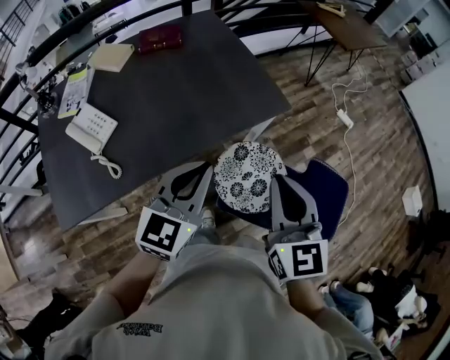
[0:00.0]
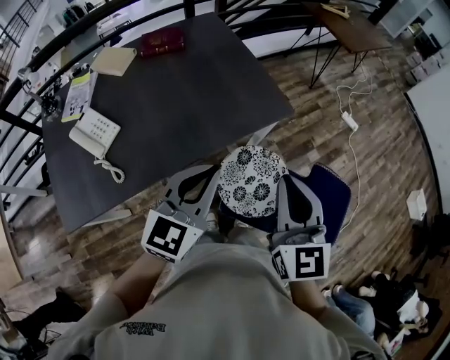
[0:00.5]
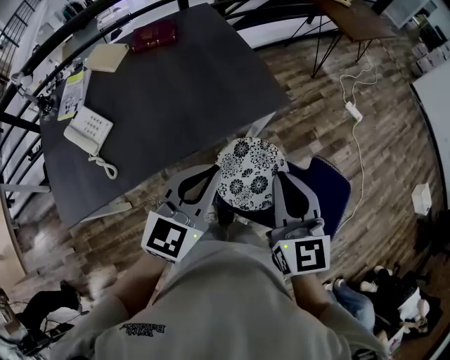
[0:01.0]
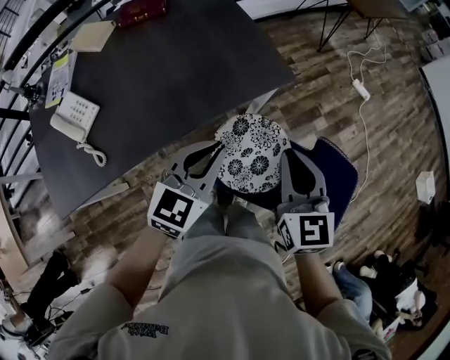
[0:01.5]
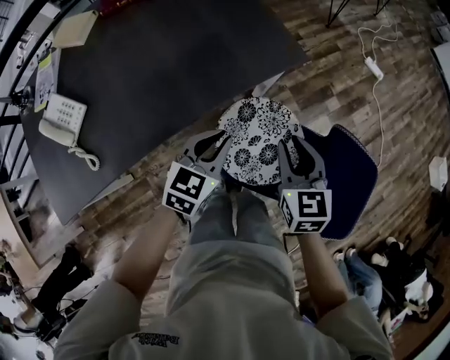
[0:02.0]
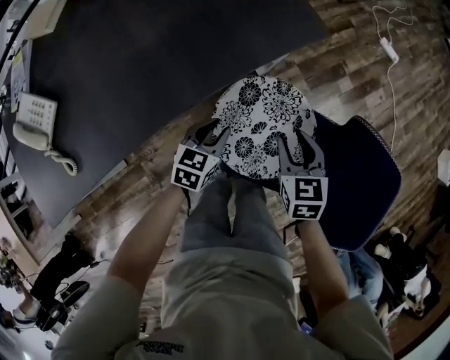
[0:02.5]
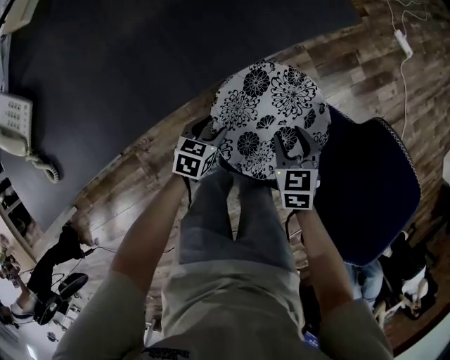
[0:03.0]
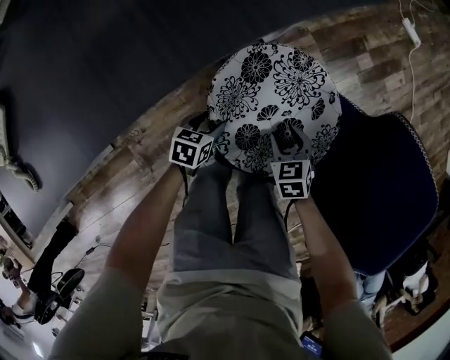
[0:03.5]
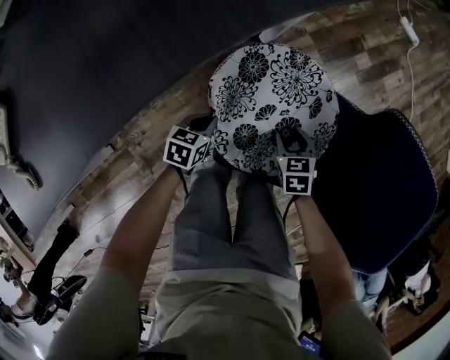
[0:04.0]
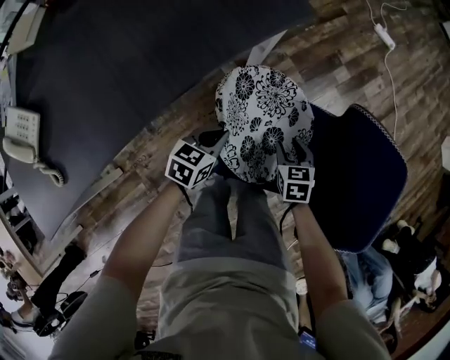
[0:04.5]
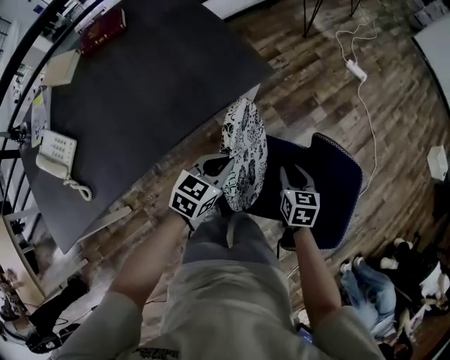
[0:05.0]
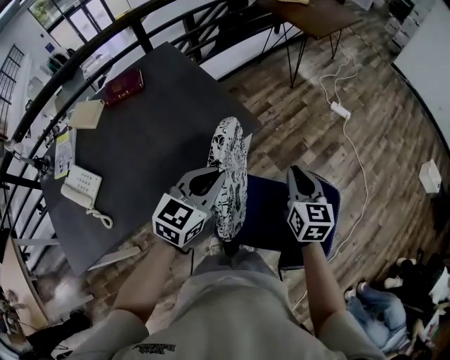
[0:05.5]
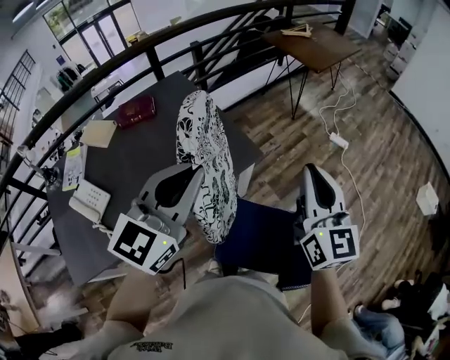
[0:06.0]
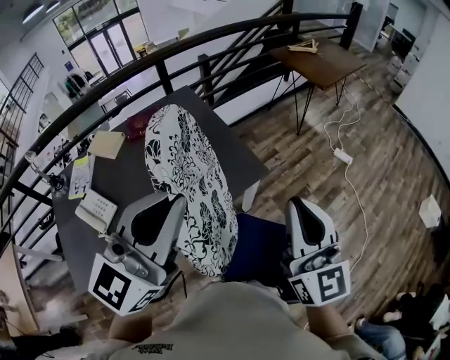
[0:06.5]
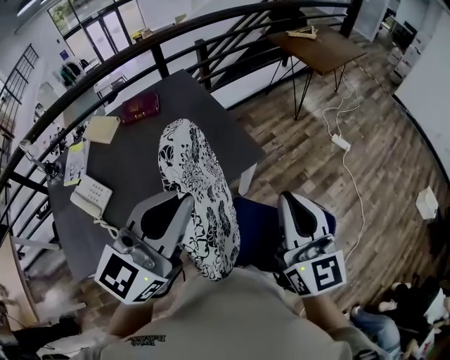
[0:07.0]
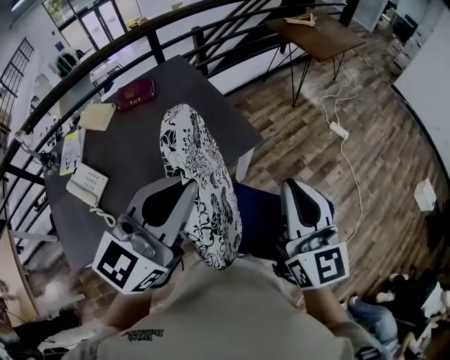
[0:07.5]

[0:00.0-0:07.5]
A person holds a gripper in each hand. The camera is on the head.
0:00.0 to 0:02.0: The two grippers go approximately 25 cm downward and forward. The right gripper turns by approximately 20 degrees. Meanwhile the left gripper swivels about 20 degrees.
0:02.0 to 0:04.0: Both grippers travel together downward, about 40 cm. The left gripper turns by some 30 degrees, and opens, then closes again; the right gripper tilts its fingers about 30 degrees downward, and opens up.
0:04.0 to 0:05.5: Both grippers travel together upward, approximately 60 cm. The right gripper tips its fingers upward by roughly 40 degrees, and closes up, while the left gripper points its fingers approximately 30 degrees further upward.
0:05.5 to 0:07.5: Both grippers travel together upward, about 25 cm. The left gripper swivels approximately 20 degrees; the right gripper swivels approximately 30 degrees.

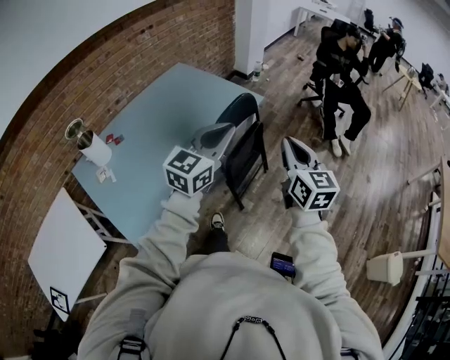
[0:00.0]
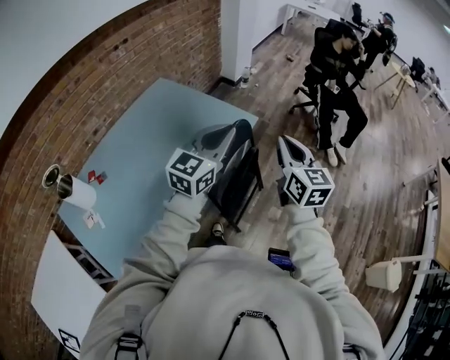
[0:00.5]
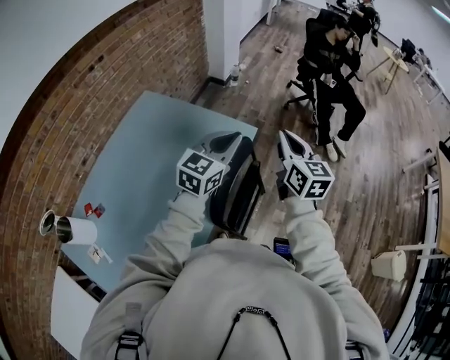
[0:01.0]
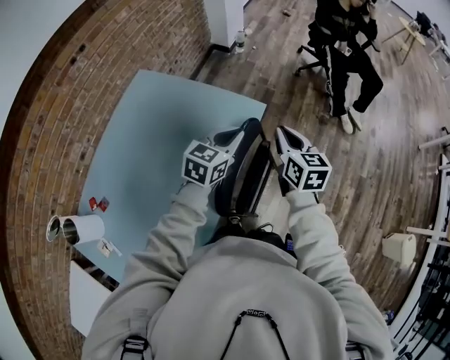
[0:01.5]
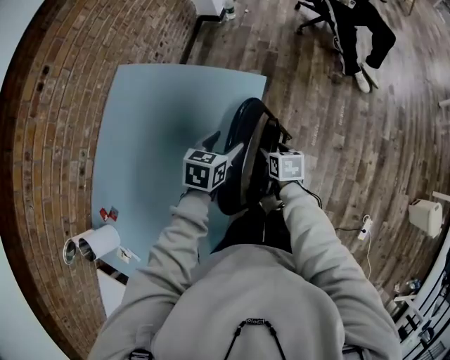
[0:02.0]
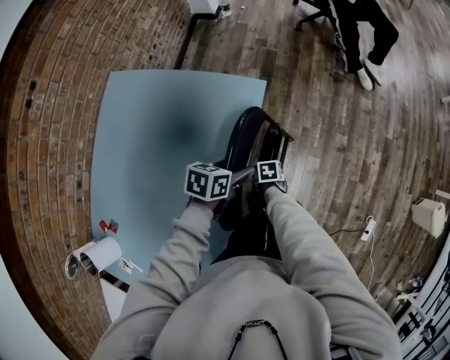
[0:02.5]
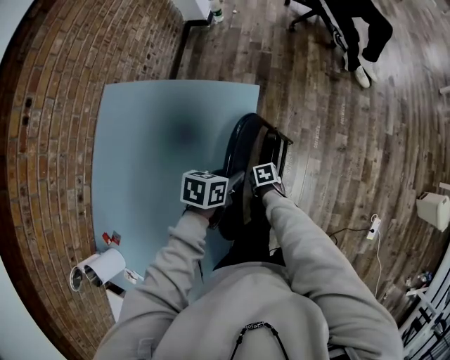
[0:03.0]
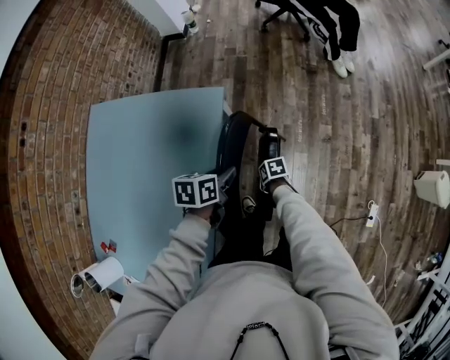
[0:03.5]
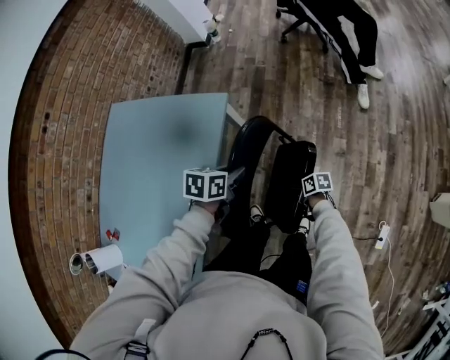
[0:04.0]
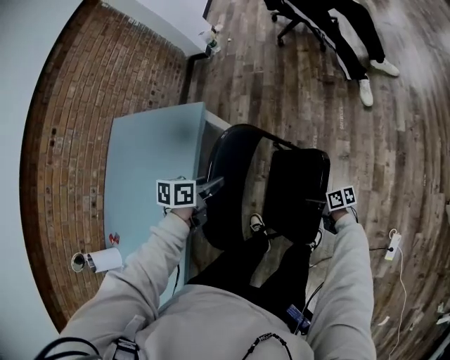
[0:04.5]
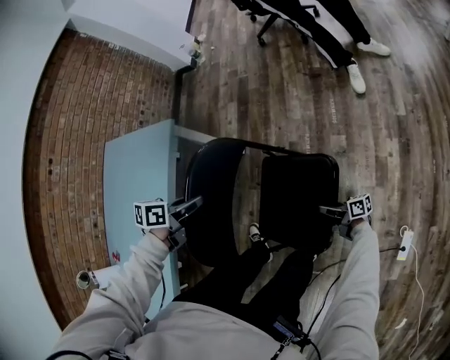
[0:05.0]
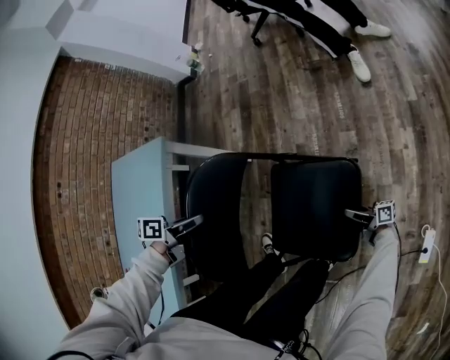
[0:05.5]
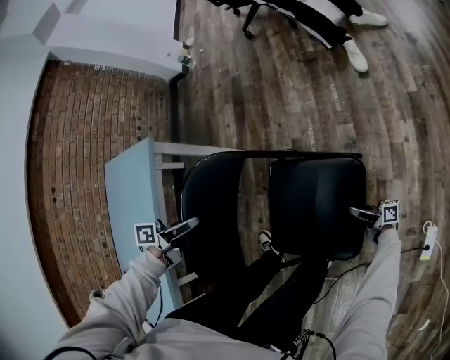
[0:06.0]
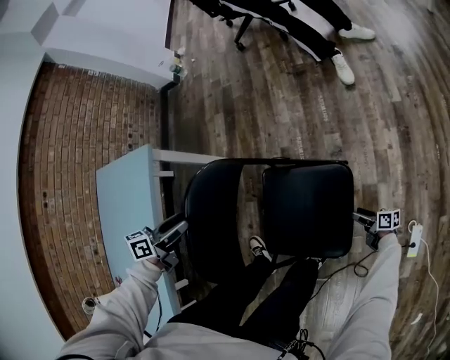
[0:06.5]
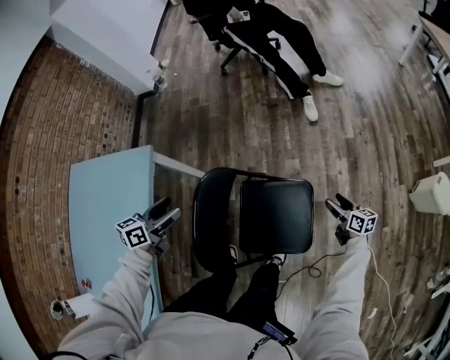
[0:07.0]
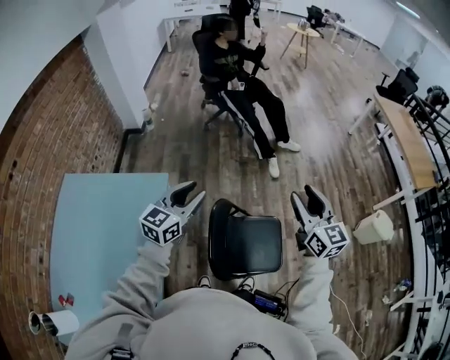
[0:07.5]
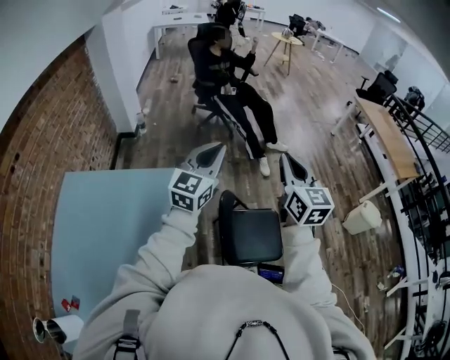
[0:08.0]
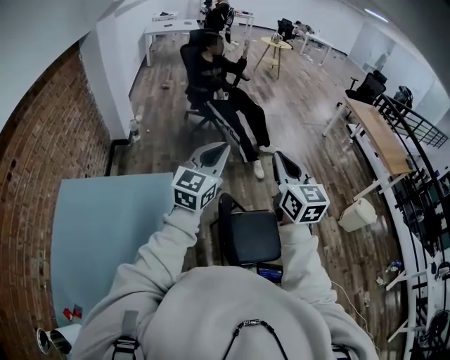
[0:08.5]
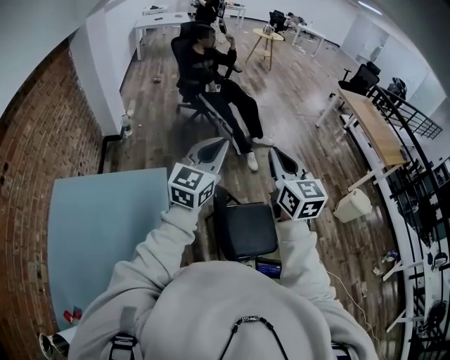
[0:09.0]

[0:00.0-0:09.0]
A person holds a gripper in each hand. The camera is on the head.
0:00.0 to 0:02.0: The pair of grippers is taken forward, roughly 40 cm. Both grippers travel together downward, roughly 40 cm. The right gripper tips its fingers downward by about 50 degrees, and opens up; the left gripper angles its fingers downward, by approximately 50 degrees, and opens its fingers.
0:02.0 to 0:04.5: The right gripper shifts by some 40 cm, turns by approximately 40 degrees, and closes; the left gripper ends up about 25 cm from where it was, and closes.
0:04.5 to 0:07.0: The right gripper goes downward and returns, some 25 cm each way, rotates roughly 40 degrees, and opens up; the left gripper goes downward and returns, roughly 15 cm each way, swivels about 30 degrees, and opens its fingers.
0:07.0 to 0:09.0: The left gripper shifts about 40 cm upward, tilts its fingers approximately 30 degrees upward, and closes up; the right gripper travels upward and to the left by about 80 cm, changes its angle by about 50 degrees, and closes up.

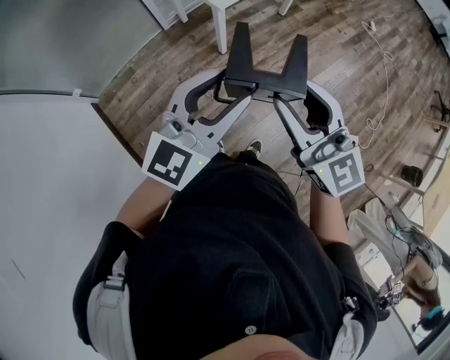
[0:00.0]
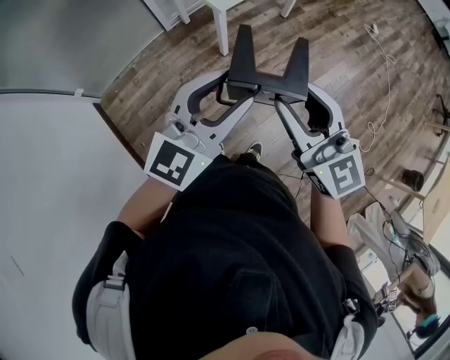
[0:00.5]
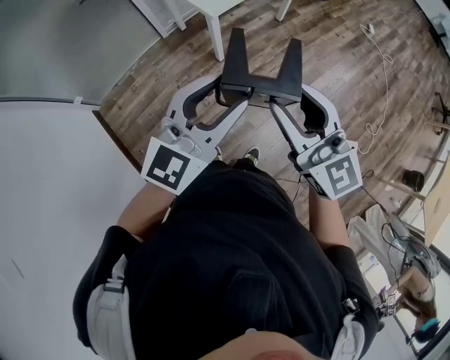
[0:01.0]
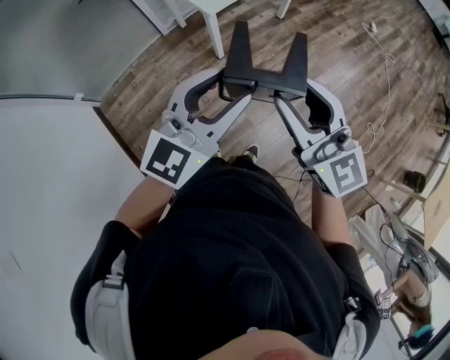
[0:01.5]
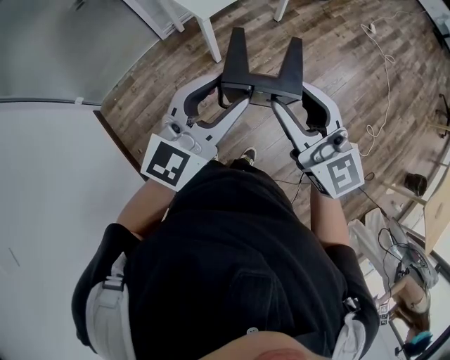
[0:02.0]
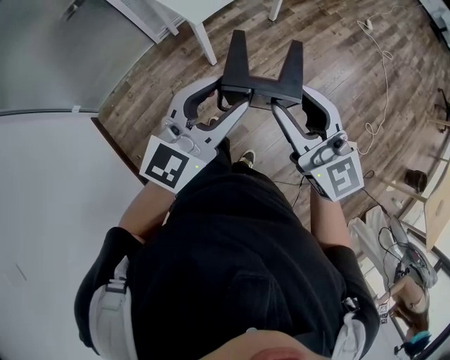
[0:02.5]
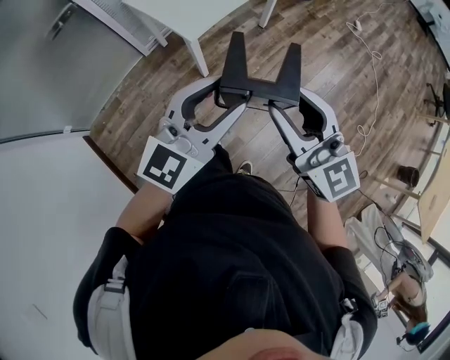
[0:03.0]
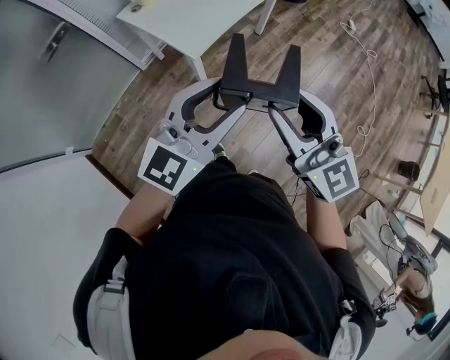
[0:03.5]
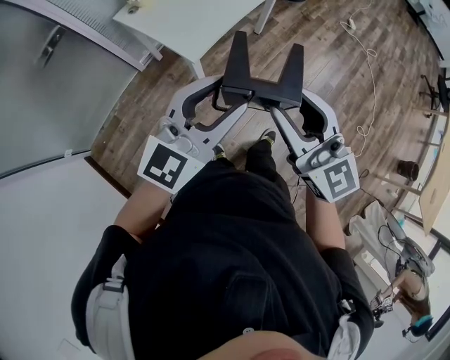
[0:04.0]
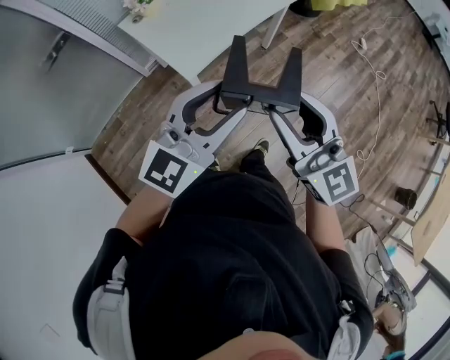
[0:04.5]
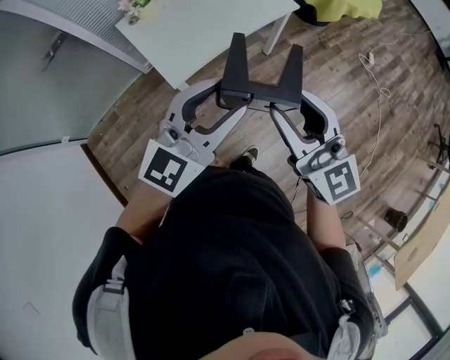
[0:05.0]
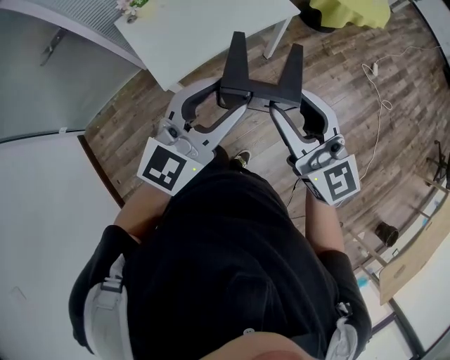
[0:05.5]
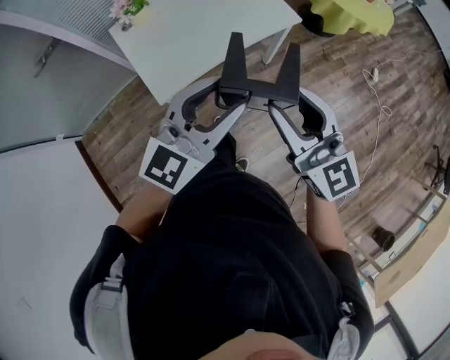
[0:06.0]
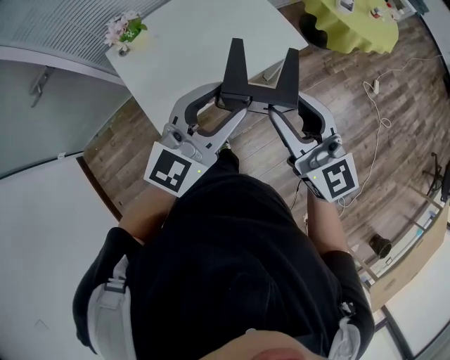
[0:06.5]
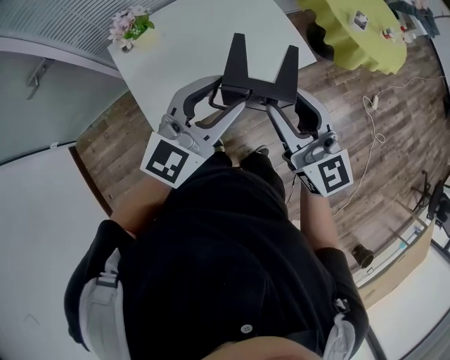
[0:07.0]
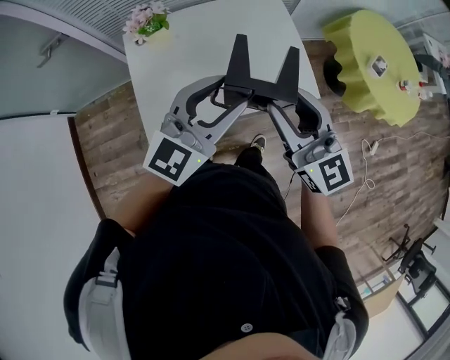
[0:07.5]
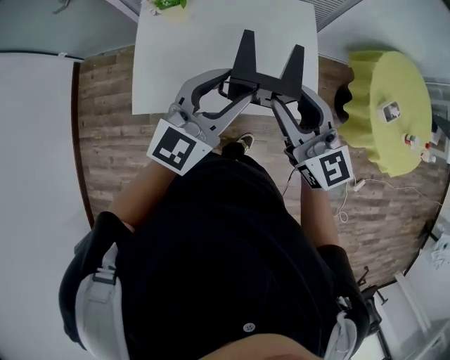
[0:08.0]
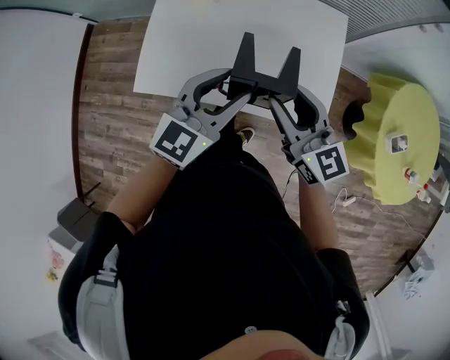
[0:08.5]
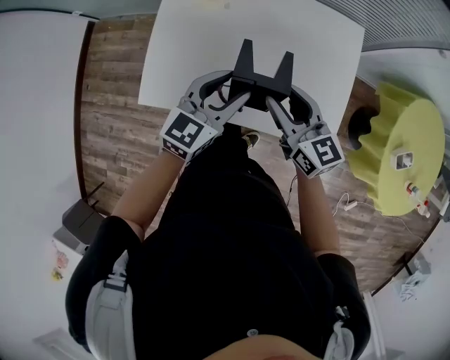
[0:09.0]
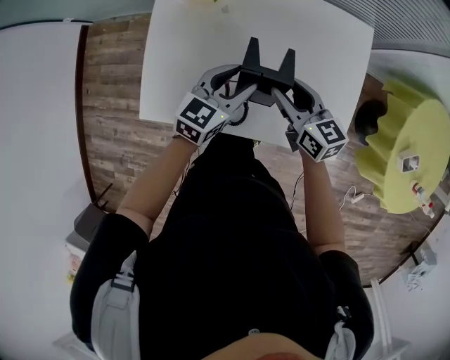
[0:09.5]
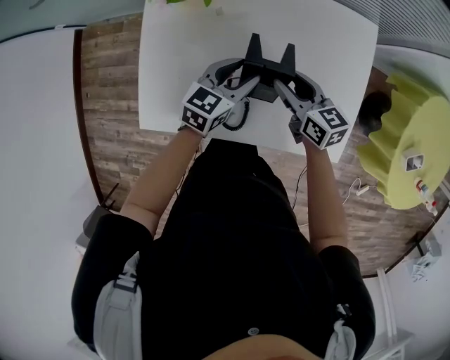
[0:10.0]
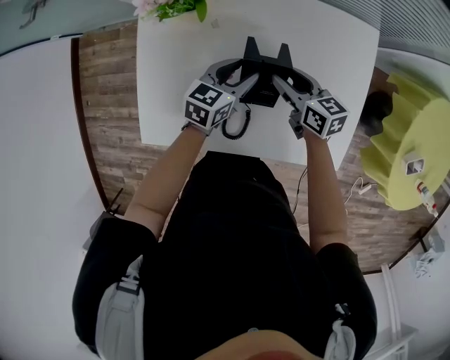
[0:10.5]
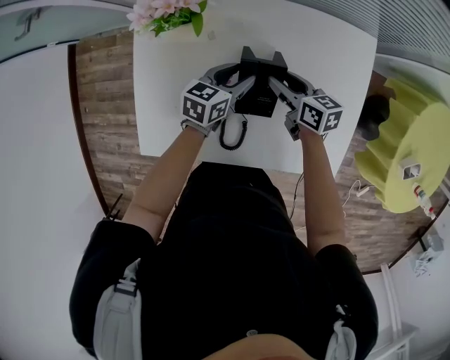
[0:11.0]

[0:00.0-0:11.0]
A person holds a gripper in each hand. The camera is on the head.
0:00.0 to 0:02.0: The two grippers go approximately 15 cm to the right.
0:02.0 to 0:03.5: The right gripper shifts some 20 cm forward and to the left. The left gripper moves forward, approximately 20 cm.
0:03.5 to 0:05.5: Both grippers move forward and to the right, some 30 cm.
0:05.5 to 0:07.5: The two grippers go some 40 cm forward.
0:07.5 to 0:09.0: The grippers both shift downward by some 20 cm. The right gripper swivels approximately 40 degrees; the left gripper changes its angle by approximately 40 degrees.
0:09.0 to 0:11.0: The two grippers go approximately 30 cm downward and forward. The right gripper rotates approximately 30 degrees, while the left gripper swivels roughly 30 degrees.
